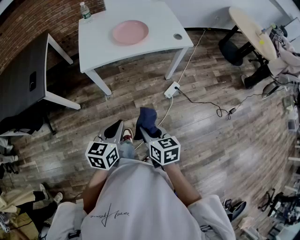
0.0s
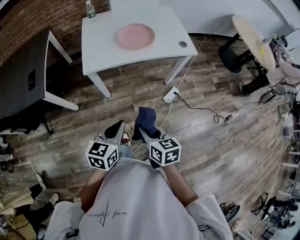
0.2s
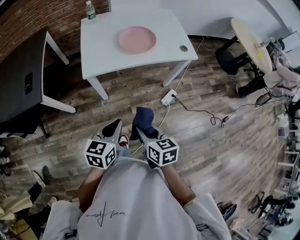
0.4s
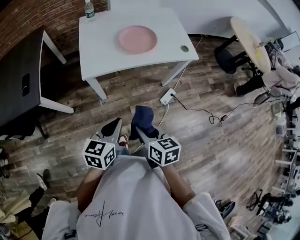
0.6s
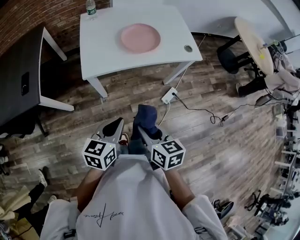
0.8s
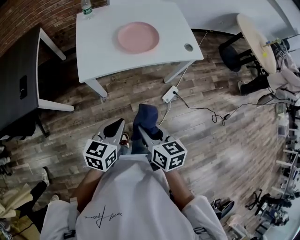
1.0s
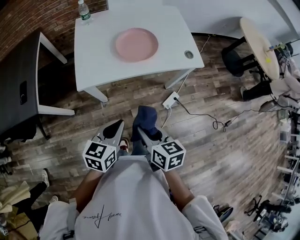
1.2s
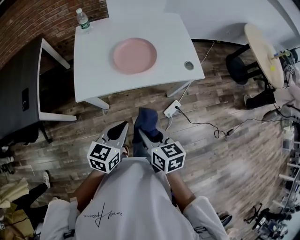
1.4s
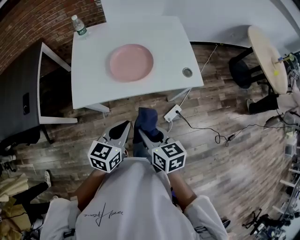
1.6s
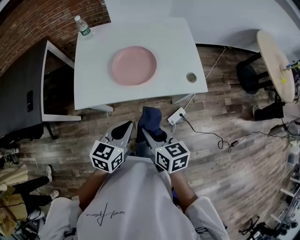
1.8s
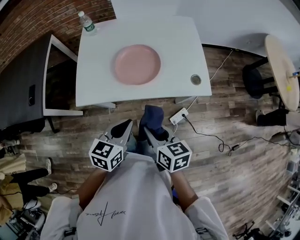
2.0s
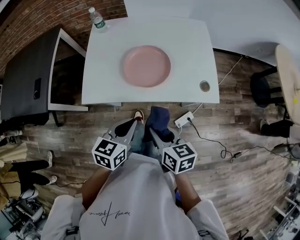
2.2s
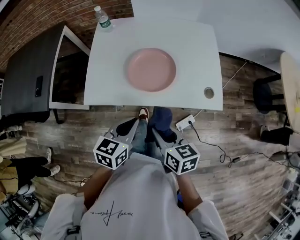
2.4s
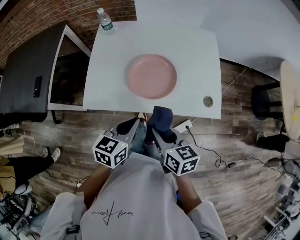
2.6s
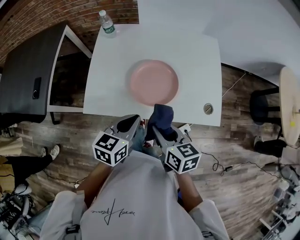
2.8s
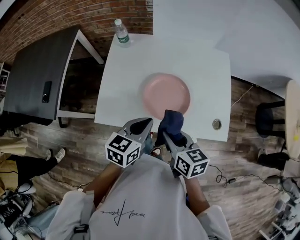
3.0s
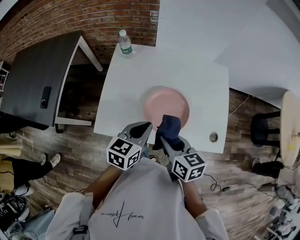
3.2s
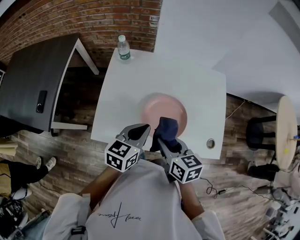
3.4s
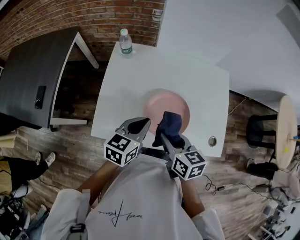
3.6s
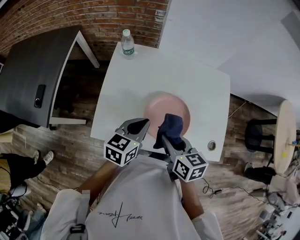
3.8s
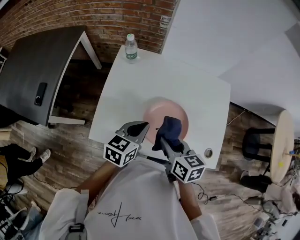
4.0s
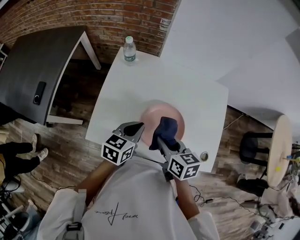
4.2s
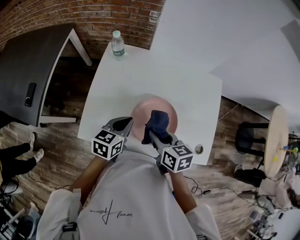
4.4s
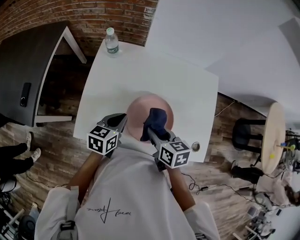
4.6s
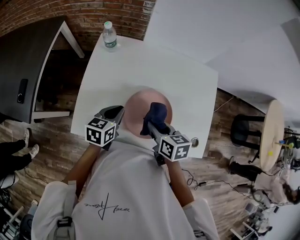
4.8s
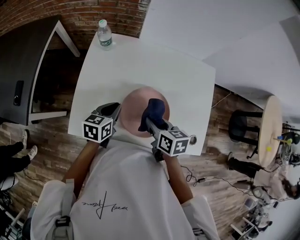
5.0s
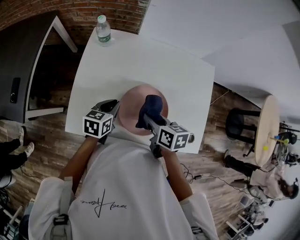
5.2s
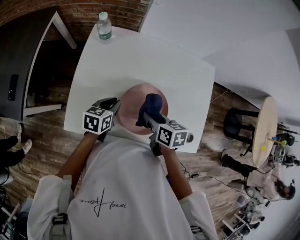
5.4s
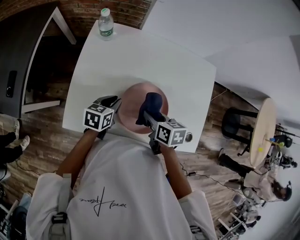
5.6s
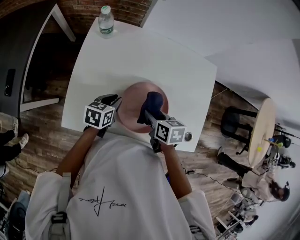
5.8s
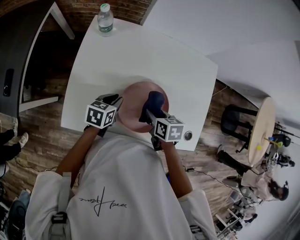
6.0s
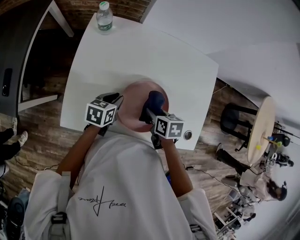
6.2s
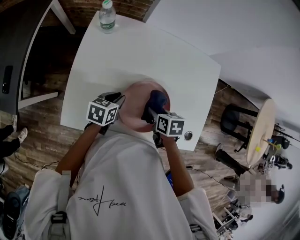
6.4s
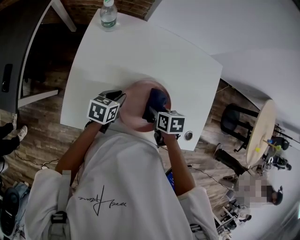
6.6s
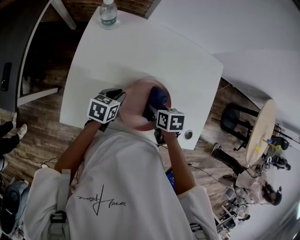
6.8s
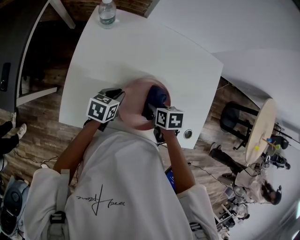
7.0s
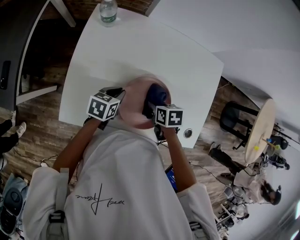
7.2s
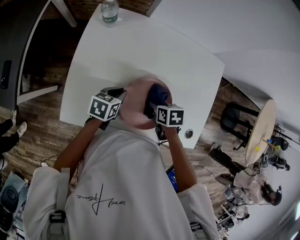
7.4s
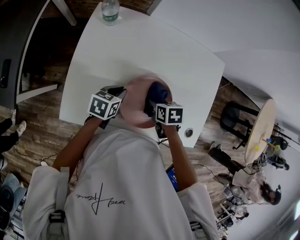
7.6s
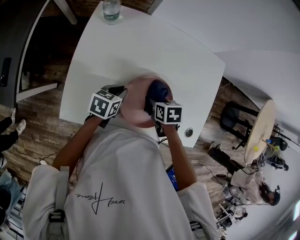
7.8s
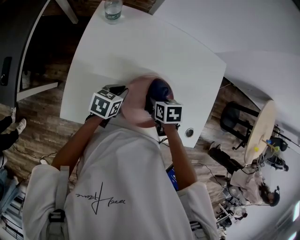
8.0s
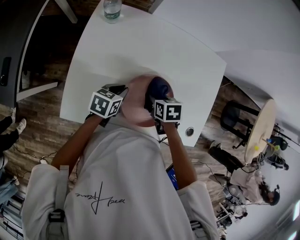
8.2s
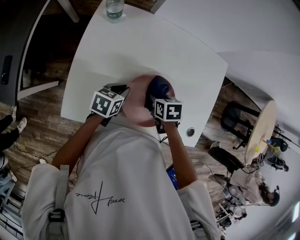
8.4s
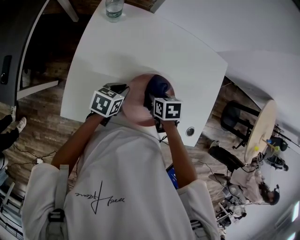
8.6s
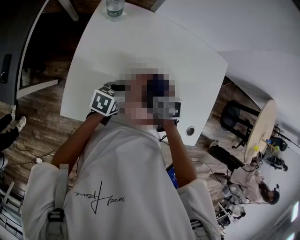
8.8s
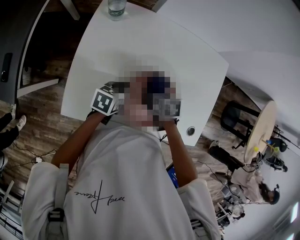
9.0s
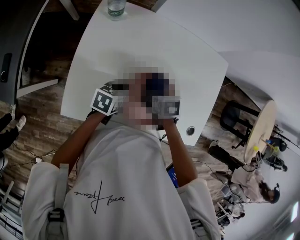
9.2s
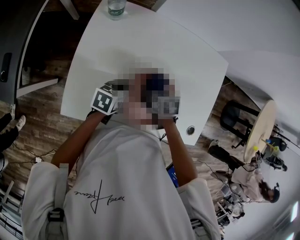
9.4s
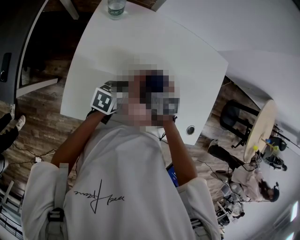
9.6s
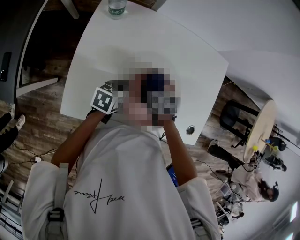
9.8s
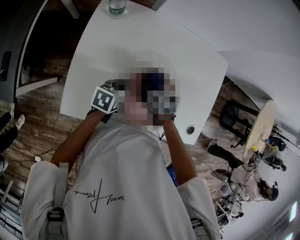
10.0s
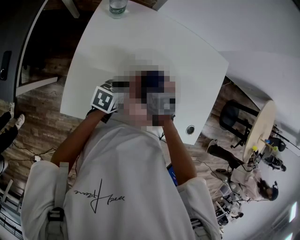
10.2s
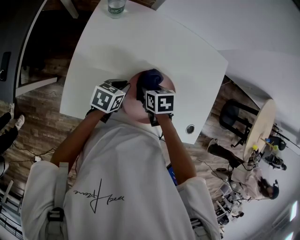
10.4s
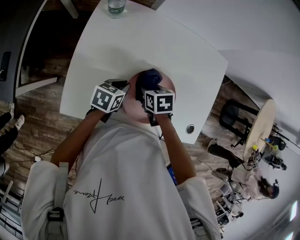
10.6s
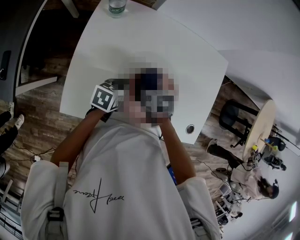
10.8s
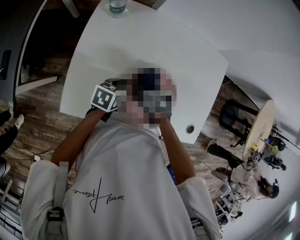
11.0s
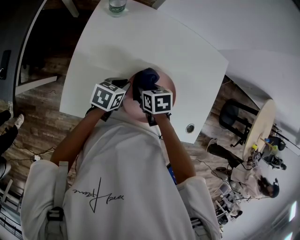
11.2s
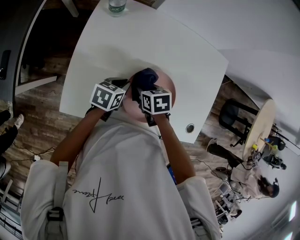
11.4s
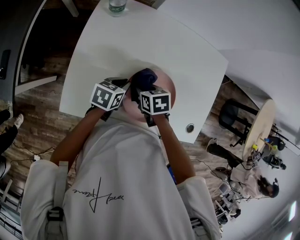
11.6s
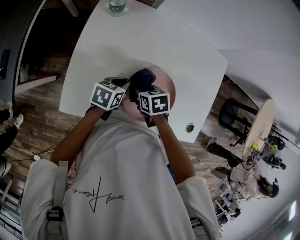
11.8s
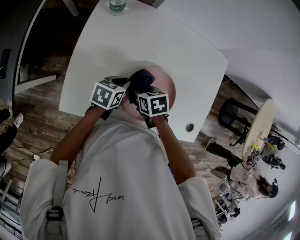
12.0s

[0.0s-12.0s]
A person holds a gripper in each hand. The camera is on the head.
0.0s to 1.6s: The grippers both shift forward by approximately 30 cm.
1.6s to 3.0s: The two grippers go some 20 cm forward.
3.0s to 4.4s: The left gripper travels forward and to the left by some 15 cm, while the right gripper goes some 15 cm forward.
4.4s to 6.0s: The right gripper heads downward and to the right, covering roughly 10 cm, and turns by roughly 20 degrees. Meanwhile the left gripper travels downward by roughly 10 cm.
6.0s to 7.6s: The right gripper is displaced downward by roughly 5 cm.
7.6s to 9.0s: There are only small adjustments of the grippers.
9.0s to 10.4s: The grippers move only a little.
10.4s to 12.0s: The grippers stay close to where they were, moving slightly.

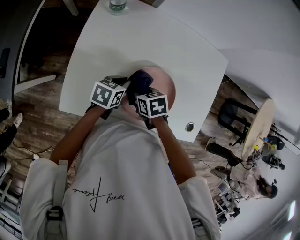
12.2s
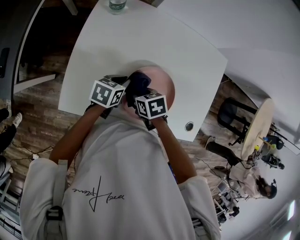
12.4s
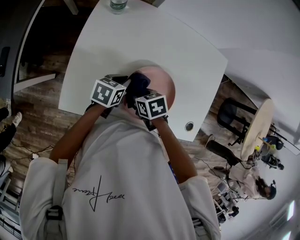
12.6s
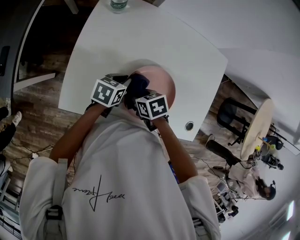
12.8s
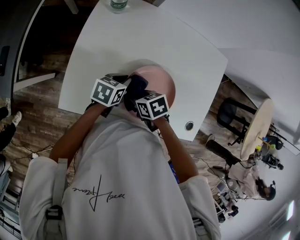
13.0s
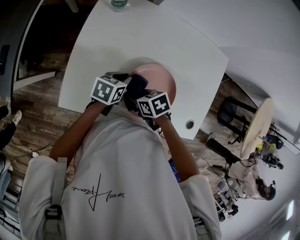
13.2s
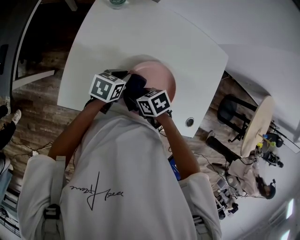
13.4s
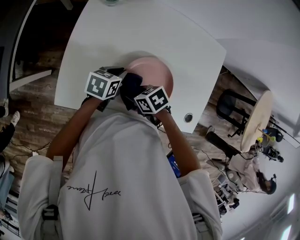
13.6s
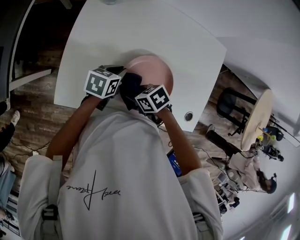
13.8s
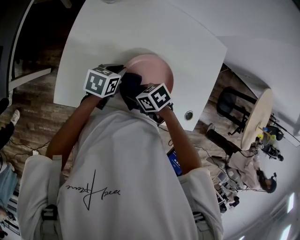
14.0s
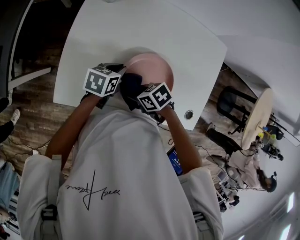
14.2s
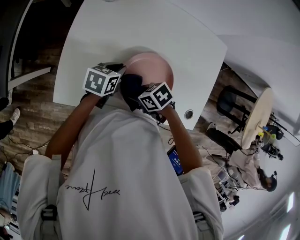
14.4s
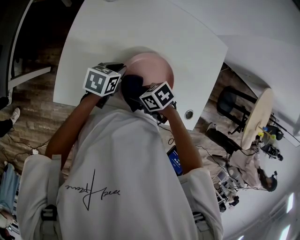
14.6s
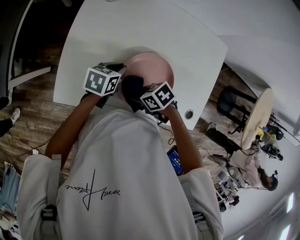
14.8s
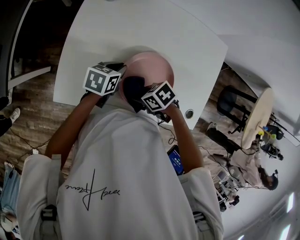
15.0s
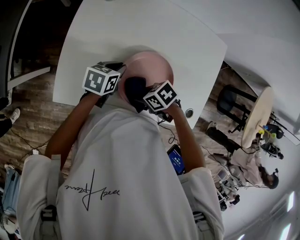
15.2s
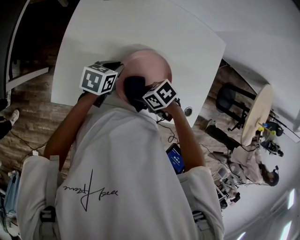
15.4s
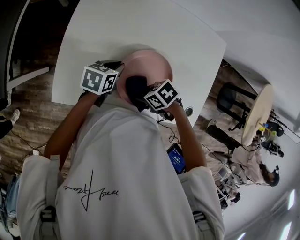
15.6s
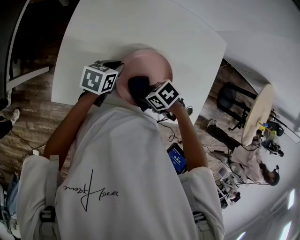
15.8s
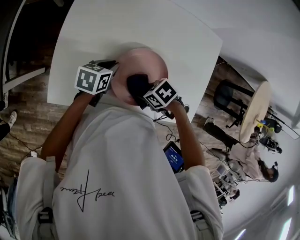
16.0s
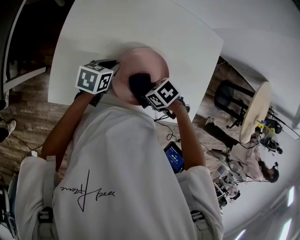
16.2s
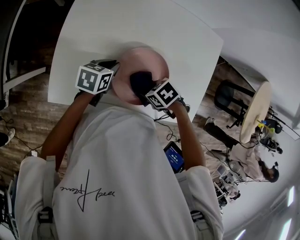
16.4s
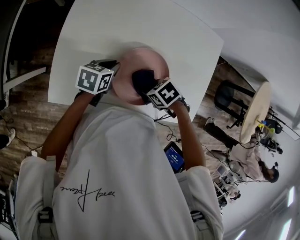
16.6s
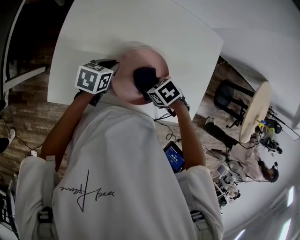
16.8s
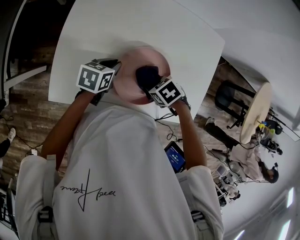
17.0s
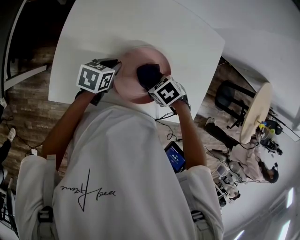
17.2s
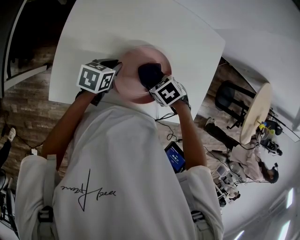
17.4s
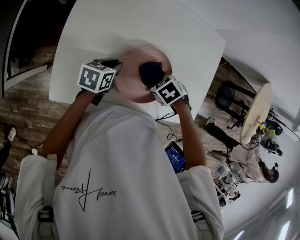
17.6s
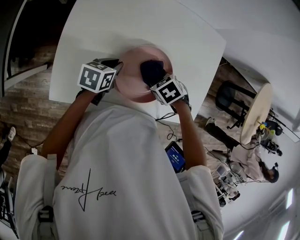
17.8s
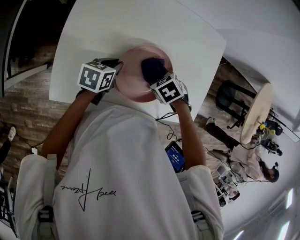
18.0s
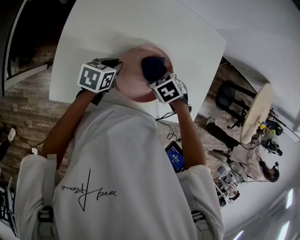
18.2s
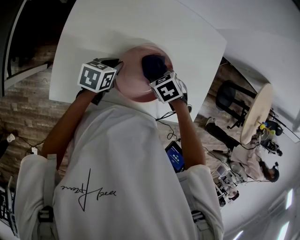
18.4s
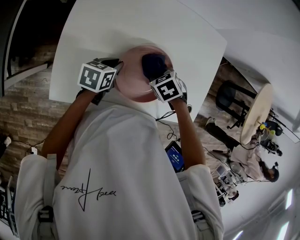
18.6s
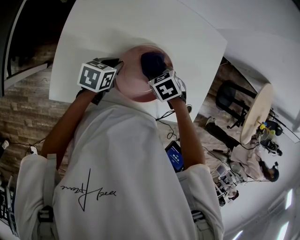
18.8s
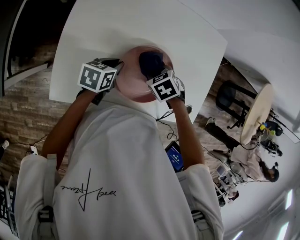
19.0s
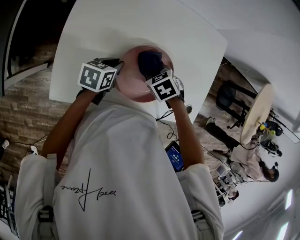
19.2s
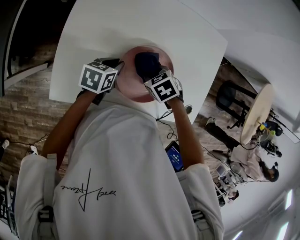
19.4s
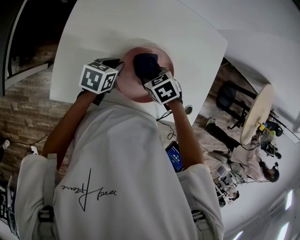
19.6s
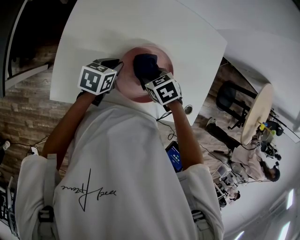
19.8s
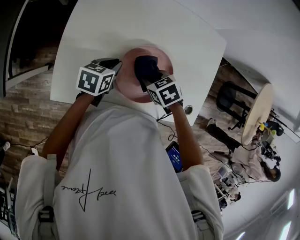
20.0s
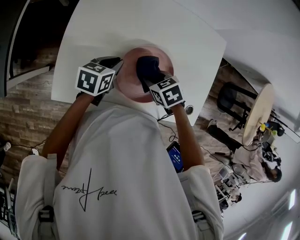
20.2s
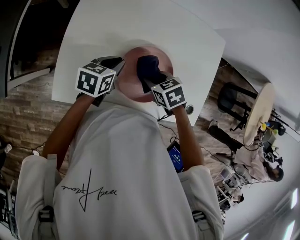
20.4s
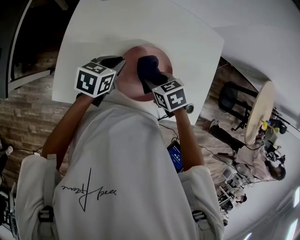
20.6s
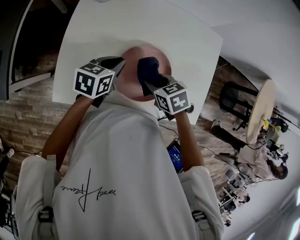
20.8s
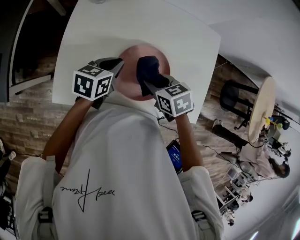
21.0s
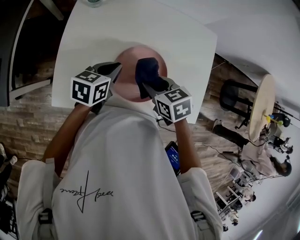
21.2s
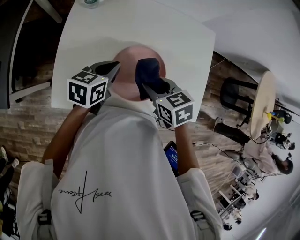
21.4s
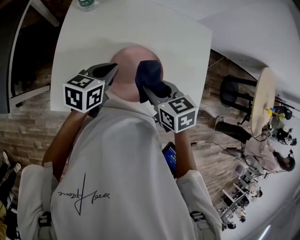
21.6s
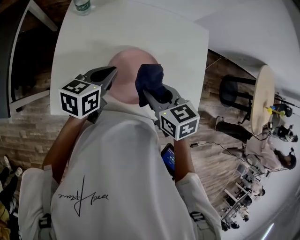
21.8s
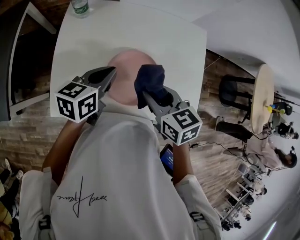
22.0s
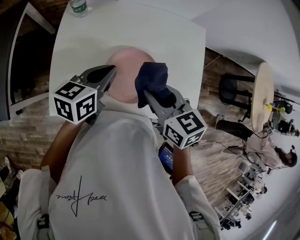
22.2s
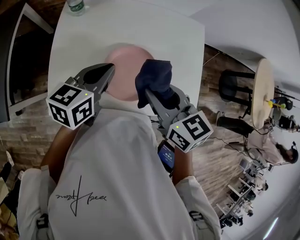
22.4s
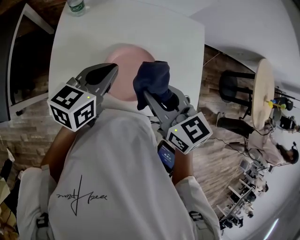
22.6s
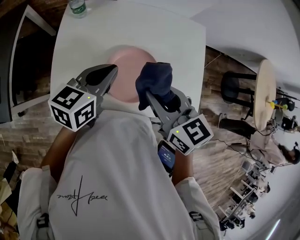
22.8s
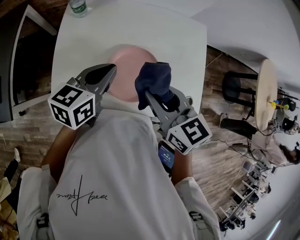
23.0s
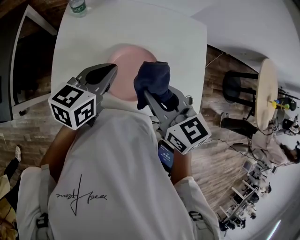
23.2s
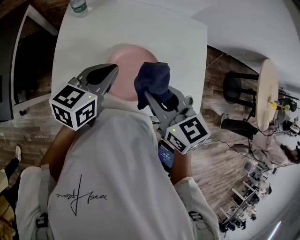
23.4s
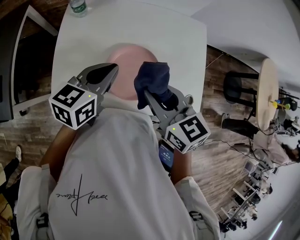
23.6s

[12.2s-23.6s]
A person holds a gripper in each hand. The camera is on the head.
12.2s to 13.6s: The right gripper shifts by approximately 5 cm, and swivels about 20 degrees.
13.6s to 15.0s: There are only small adjustments of the grippers.
15.0s to 16.4s: The right gripper moves roughly 5 cm.
16.4s to 17.8s: The right gripper shifts by approximately 5 cm.
17.8s to 19.4s: The grippers stay close to where they were, moving slightly.
19.4s to 20.8s: Both grippers move upward, some 5 cm.
20.8s to 22.2s: The grippers both shift upward by approximately 15 cm. The right gripper turns by about 30 degrees.
22.2s to 23.6s: The grippers stay close to where they were, moving slightly.

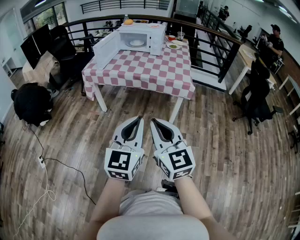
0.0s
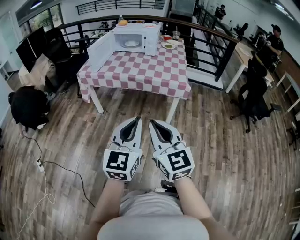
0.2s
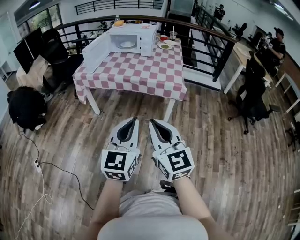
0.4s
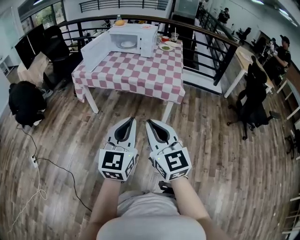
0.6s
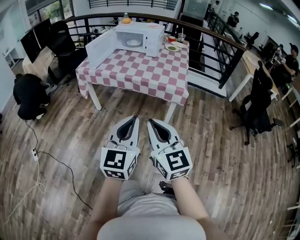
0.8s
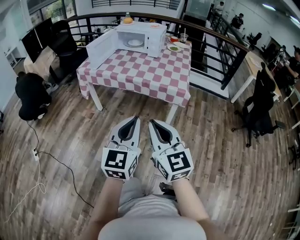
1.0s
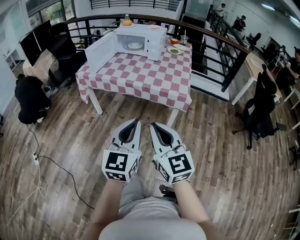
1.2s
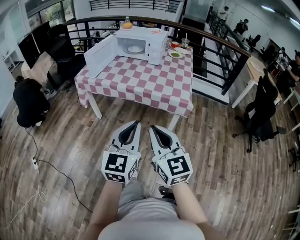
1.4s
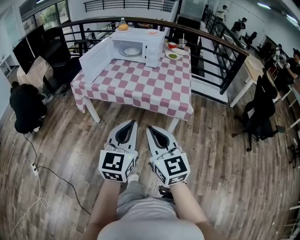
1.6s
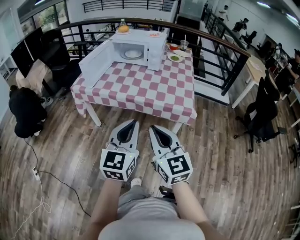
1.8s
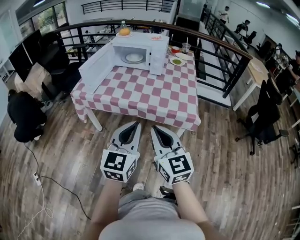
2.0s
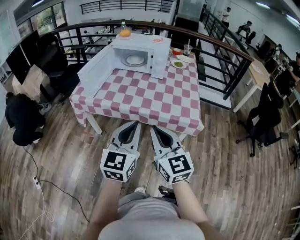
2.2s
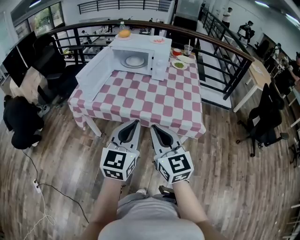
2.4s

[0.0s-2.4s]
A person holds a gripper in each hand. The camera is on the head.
0.0s to 1.2s: The left gripper shifts roughly 15 cm forward and to the right; the right gripper is displaced to the right and forward by approximately 15 cm.
1.2s to 2.4s: The grippers both shift forward by approximately 25 cm.
